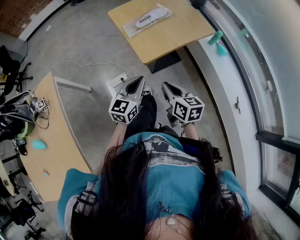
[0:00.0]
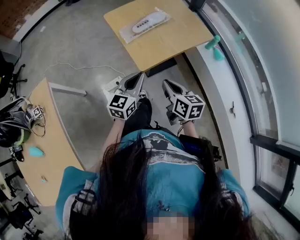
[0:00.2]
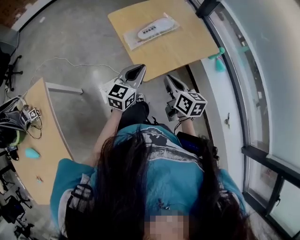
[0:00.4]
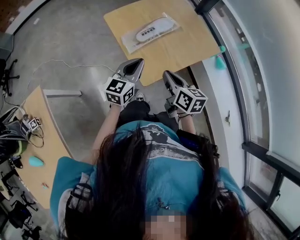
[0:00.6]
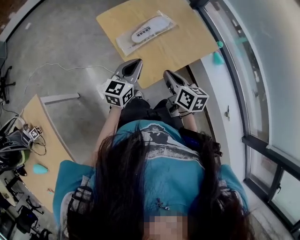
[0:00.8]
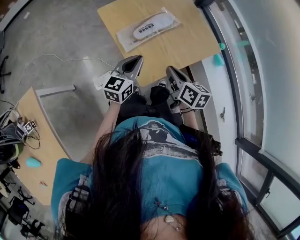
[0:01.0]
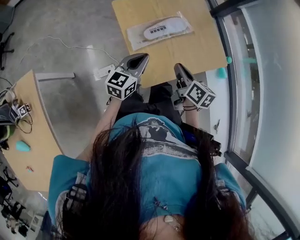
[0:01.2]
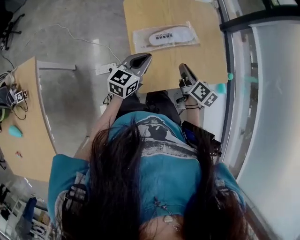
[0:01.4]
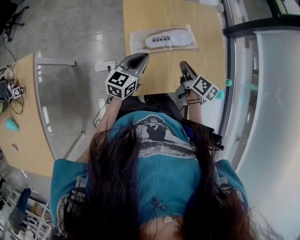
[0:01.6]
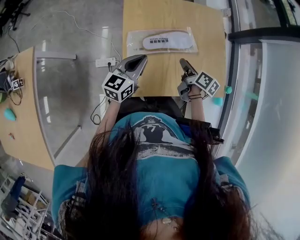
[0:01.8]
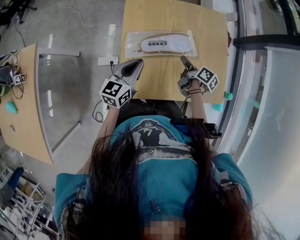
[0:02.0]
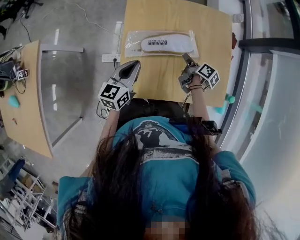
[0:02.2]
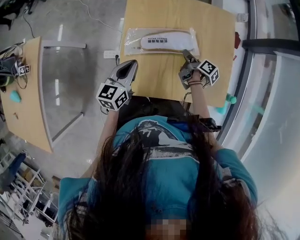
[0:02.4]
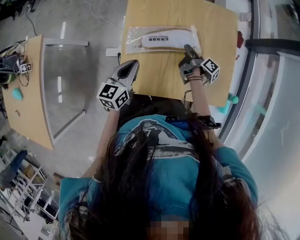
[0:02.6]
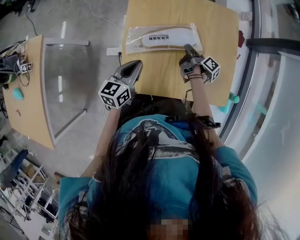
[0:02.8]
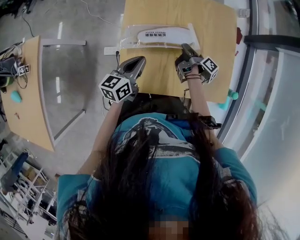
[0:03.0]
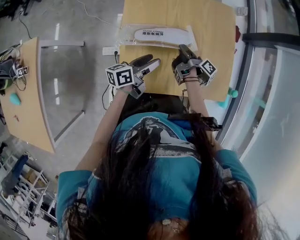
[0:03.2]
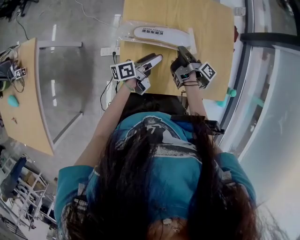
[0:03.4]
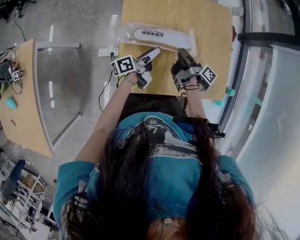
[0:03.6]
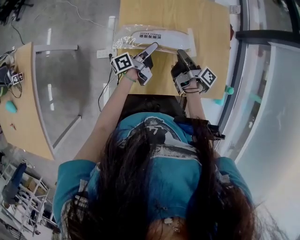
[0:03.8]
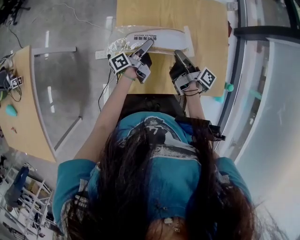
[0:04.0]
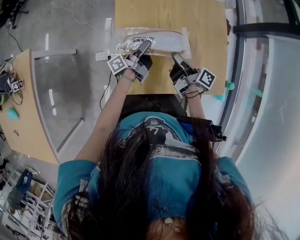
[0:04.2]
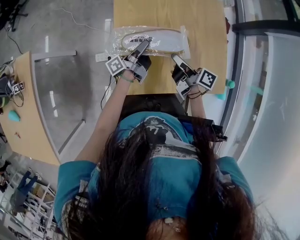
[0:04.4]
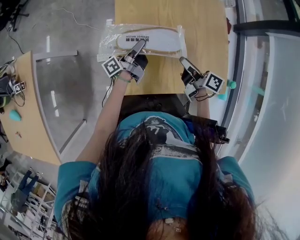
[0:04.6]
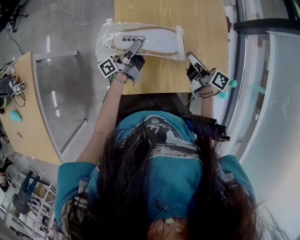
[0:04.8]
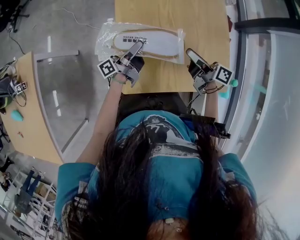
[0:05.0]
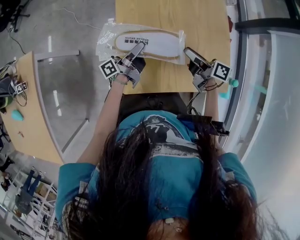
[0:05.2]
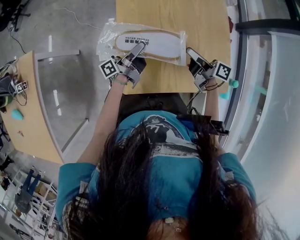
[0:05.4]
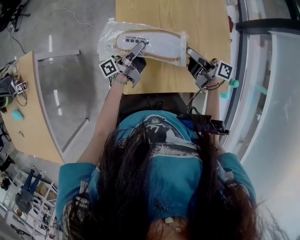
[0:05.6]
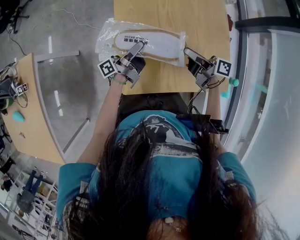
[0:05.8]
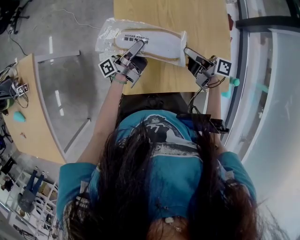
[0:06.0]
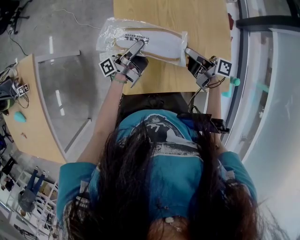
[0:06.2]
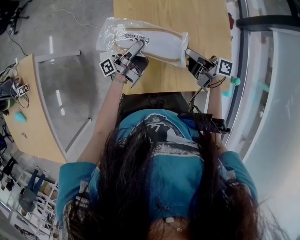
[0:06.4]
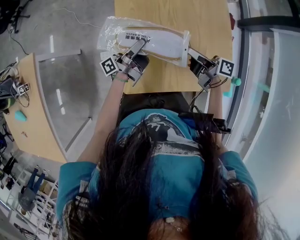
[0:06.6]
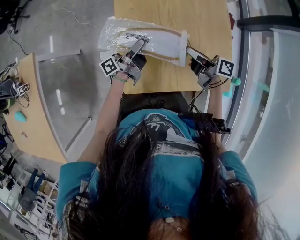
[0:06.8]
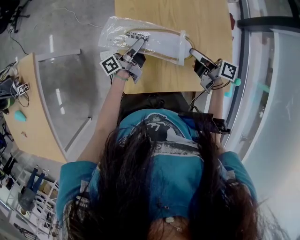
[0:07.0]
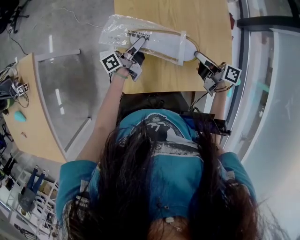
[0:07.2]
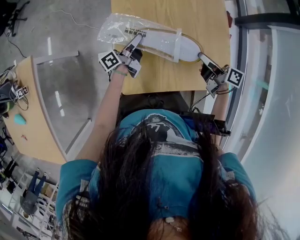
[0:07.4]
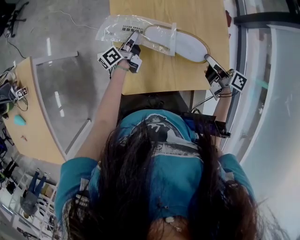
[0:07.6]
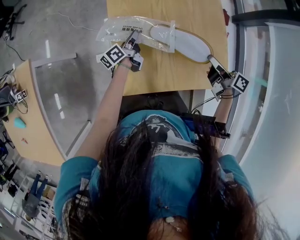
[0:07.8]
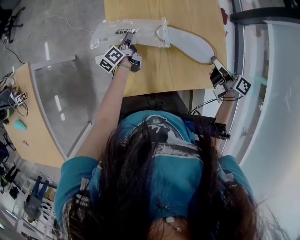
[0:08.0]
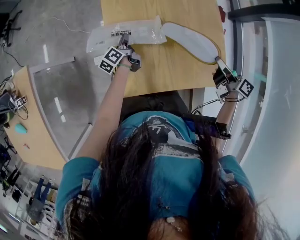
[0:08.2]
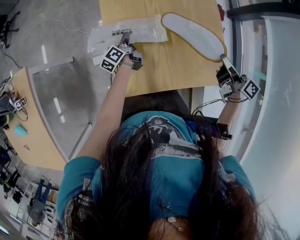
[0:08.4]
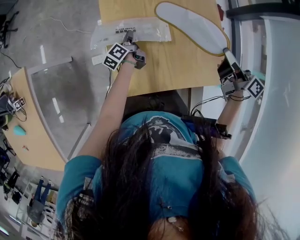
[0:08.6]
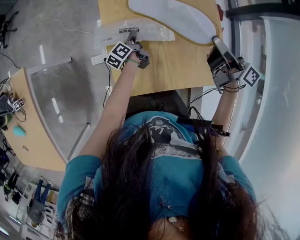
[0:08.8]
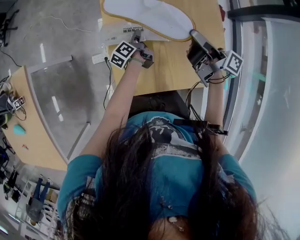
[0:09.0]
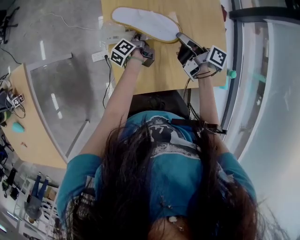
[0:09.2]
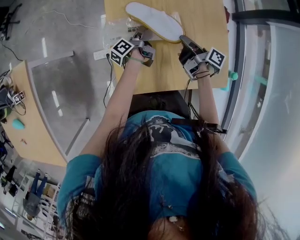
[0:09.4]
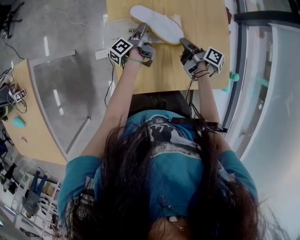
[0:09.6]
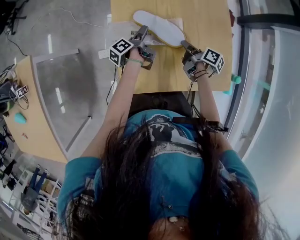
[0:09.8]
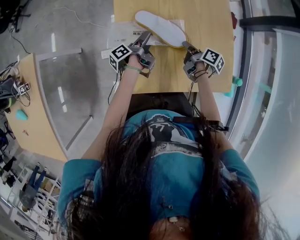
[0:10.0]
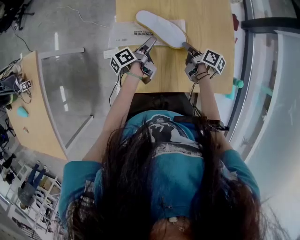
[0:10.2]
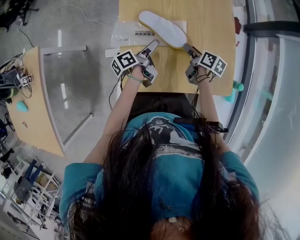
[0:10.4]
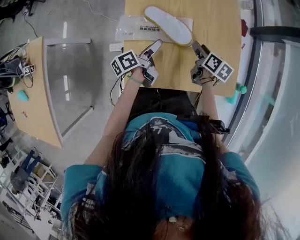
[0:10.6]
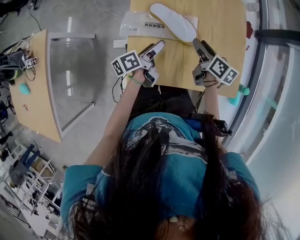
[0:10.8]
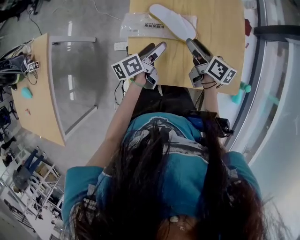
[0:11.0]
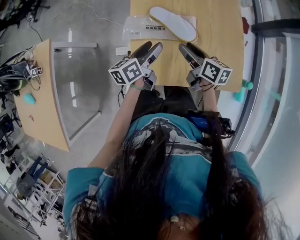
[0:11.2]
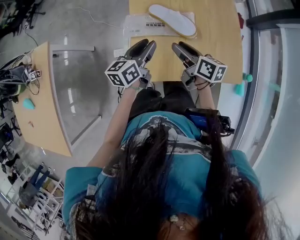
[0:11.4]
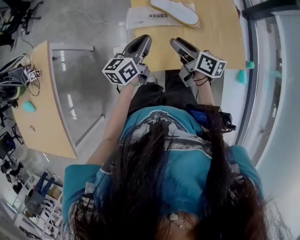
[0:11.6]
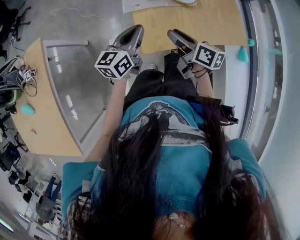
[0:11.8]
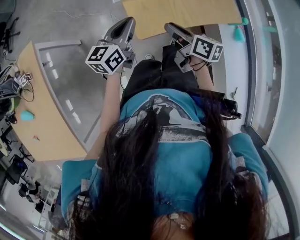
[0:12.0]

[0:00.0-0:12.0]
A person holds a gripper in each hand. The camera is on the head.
0:00.0 to 0:01.6: The pair of grippers is taken forward, roughly 50 cm.
0:01.6 to 0:03.0: The right gripper moves downward, forward and to the right, approximately 20 cm, rotates around the line of its fingers by roughly 50 degrees, clockwise from behind, and opens, then closes once more; the left gripper changes place by approximately 5 cm, and swivels some 20 degrees.
0:03.0 to 0:04.4: The right gripper is displaced upward and backward by roughly 10 cm, and rotates about 30 degrees. The left gripper shifts approximately 10 cm forward, rolls counterclockwise, seen from behind, by some 60 degrees, and opens, then closes again.
0:04.4 to 0:06.0: The left gripper ends up some 5 cm from where it was. The right gripper opens its fingers.
0:06.0 to 0:07.6: The left gripper is displaced downward and forward by roughly 10 cm, and changes its angle by roughly 30 degrees; the right gripper goes some 10 cm to the right, and closes up.
0:07.6 to 0:09.0: The right gripper travels forward, upward and to the left by some 15 cm, and turns by about 20 degrees. Meanwhile the left gripper goes roughly 5 cm downward, and rotates some 20 degrees.
0:09.0 to 0:10.4: The left gripper shifts about 10 cm backward and upward, and opens, while the right gripper is displaced downward by some 20 cm, tilts its fingers roughly 40 degrees downward, and opens up.
0:10.4 to 0:12.0: The grippers both shift backward, to the left and upward by roughly 35 cm. The left gripper rolls clockwise, seen from behind, by some 60 degrees, and closes up. Meanwhile the right gripper swivels some 20 degrees, and closes up.

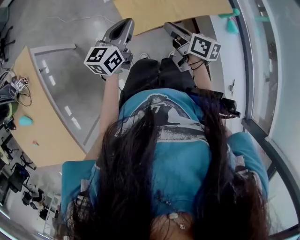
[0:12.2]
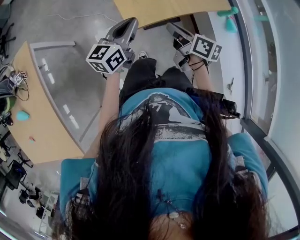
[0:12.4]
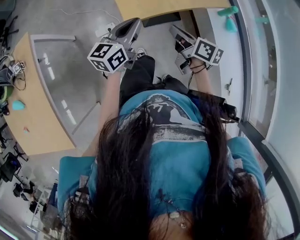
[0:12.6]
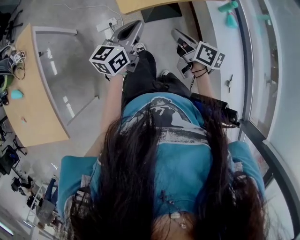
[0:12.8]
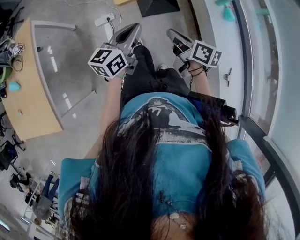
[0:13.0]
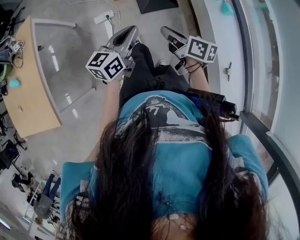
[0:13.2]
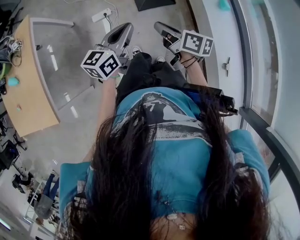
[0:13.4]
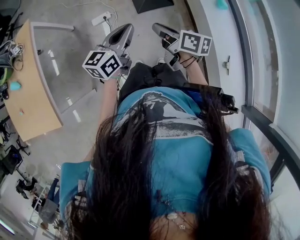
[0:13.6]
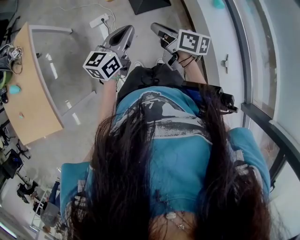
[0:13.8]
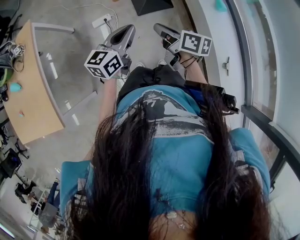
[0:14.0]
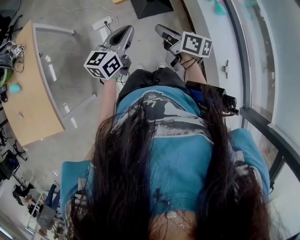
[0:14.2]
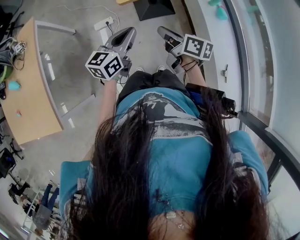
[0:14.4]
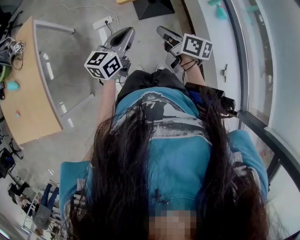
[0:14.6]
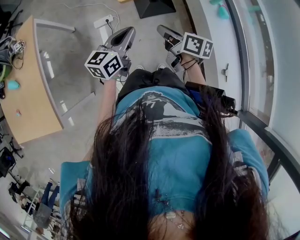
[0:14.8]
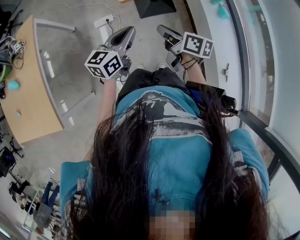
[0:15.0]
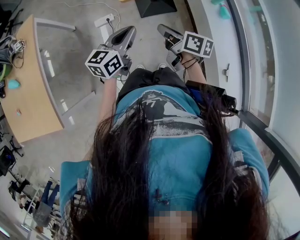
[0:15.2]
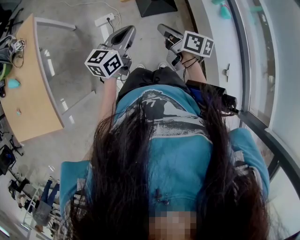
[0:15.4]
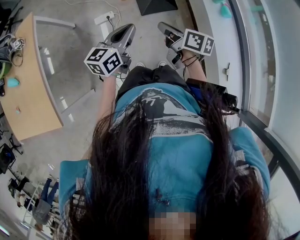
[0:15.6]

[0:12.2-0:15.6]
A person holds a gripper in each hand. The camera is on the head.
0:12.2 to 0:13.8: The left gripper is displaced backward and to the right by some 35 cm; the right gripper goes approximately 30 cm backward.
0:13.8 to 0:15.6: The right gripper shifts by roughly 5 cm. Meanwhile the left gripper is displaced to the left by about 5 cm.

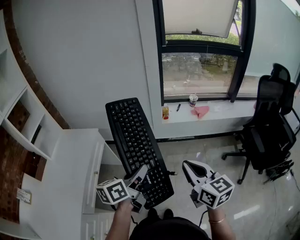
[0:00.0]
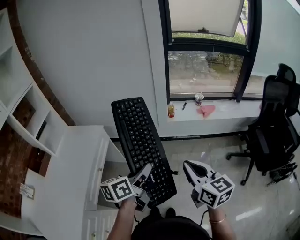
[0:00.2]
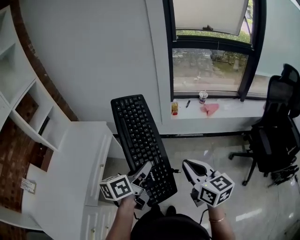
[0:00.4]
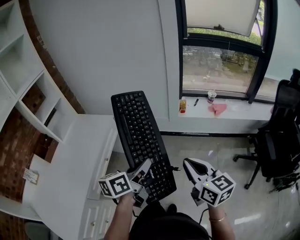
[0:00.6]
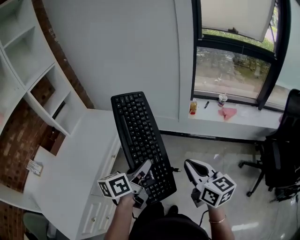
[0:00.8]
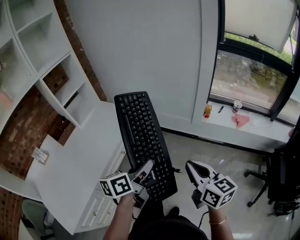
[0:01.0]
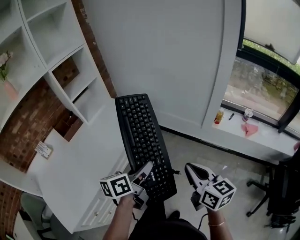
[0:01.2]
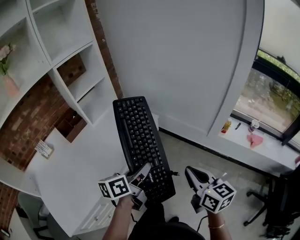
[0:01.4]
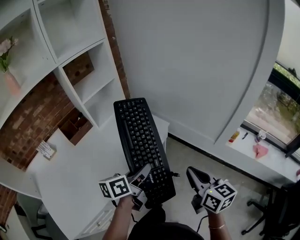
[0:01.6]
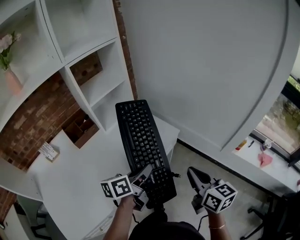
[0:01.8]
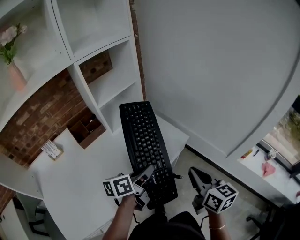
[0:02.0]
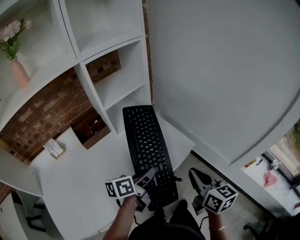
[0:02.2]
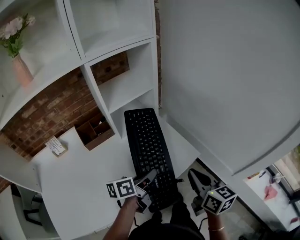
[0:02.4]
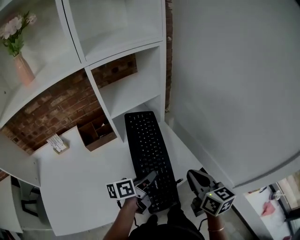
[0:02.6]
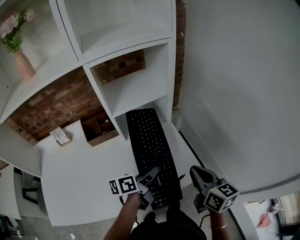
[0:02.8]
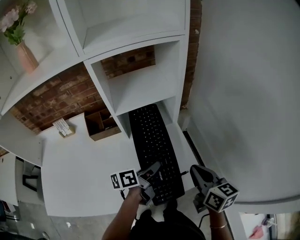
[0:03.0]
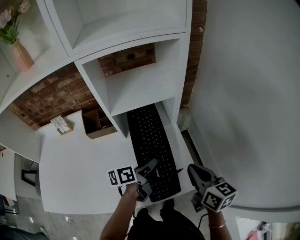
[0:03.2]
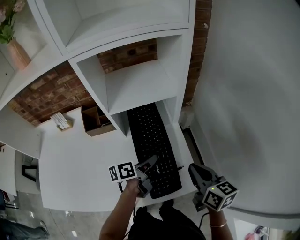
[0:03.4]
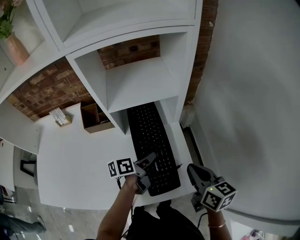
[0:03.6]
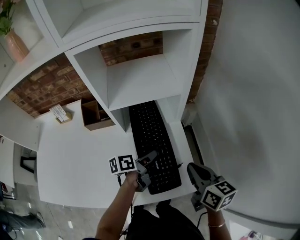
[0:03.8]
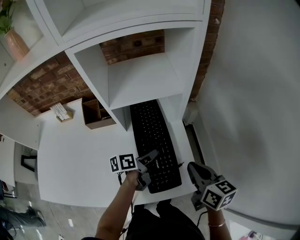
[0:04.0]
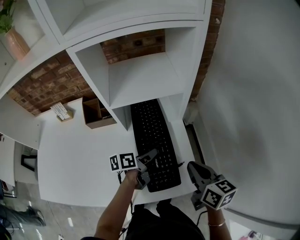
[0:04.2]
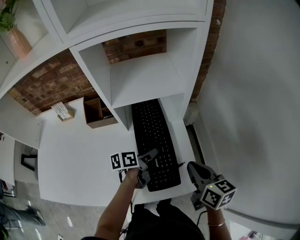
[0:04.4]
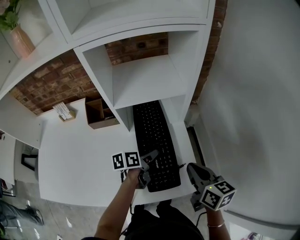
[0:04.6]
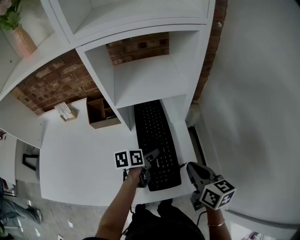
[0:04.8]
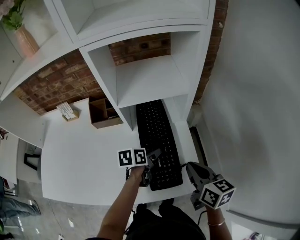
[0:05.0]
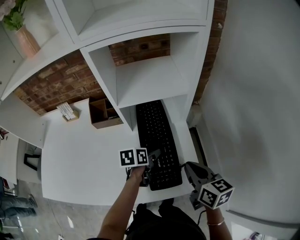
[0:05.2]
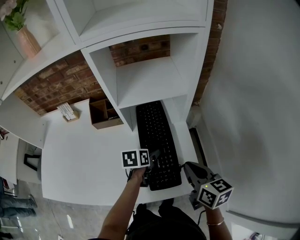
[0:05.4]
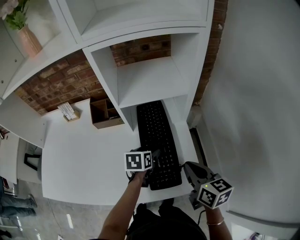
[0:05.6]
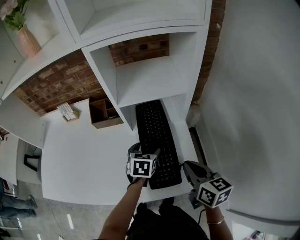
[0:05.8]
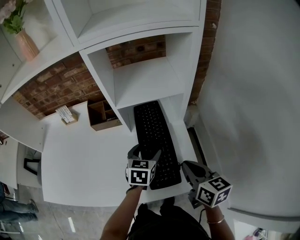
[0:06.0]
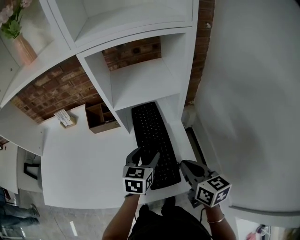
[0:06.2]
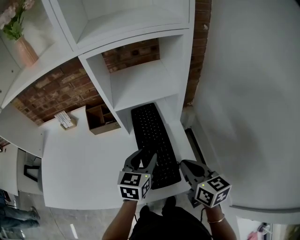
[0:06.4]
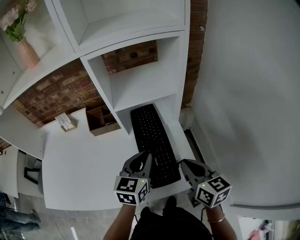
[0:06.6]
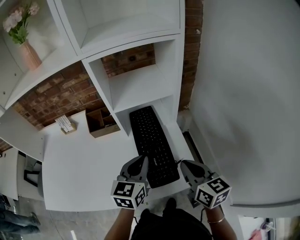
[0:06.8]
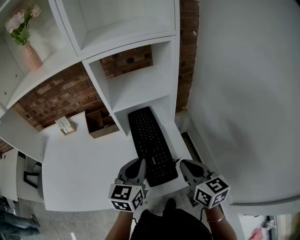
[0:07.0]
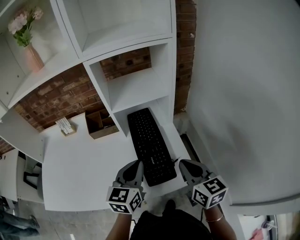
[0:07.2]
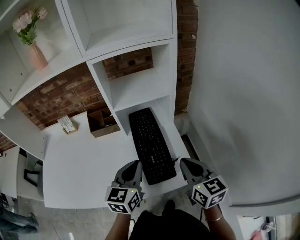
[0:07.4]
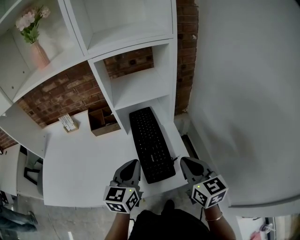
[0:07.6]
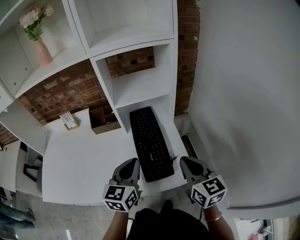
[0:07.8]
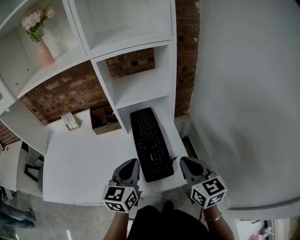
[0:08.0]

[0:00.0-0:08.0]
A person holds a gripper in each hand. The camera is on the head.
0:00.0 to 0:01.6: The left gripper shifts by some 30 cm, and changes its angle by approximately 30 degrees. Meanwhile the right gripper shifts by roughly 30 cm, and rotates some 30 degrees.
0:01.6 to 0:03.2: The left gripper shifts by approximately 35 cm, and changes its angle by approximately 40 degrees. Meanwhile the right gripper changes place by some 40 cm, and turns by roughly 40 degrees.
0:03.2 to 0:04.8: The left gripper travels downward by some 5 cm, rotates about 20 degrees, and opens.
0:04.8 to 0:06.4: The left gripper goes roughly 15 cm upward, and rolls clockwise, seen from behind, by approximately 40 degrees.
0:06.4 to 0:08.0: The right gripper shifts roughly 5 cm backward. The left gripper shifts roughly 10 cm backward and upward, and closes up.
